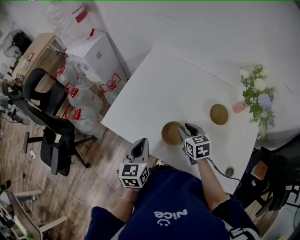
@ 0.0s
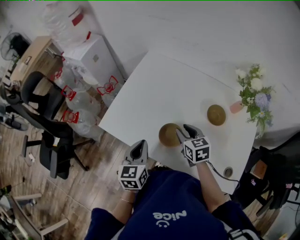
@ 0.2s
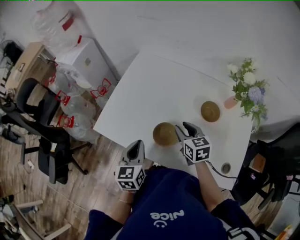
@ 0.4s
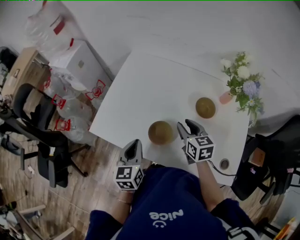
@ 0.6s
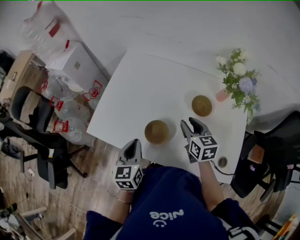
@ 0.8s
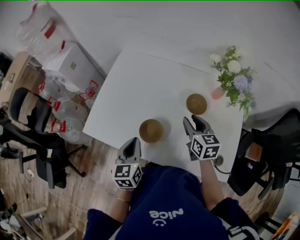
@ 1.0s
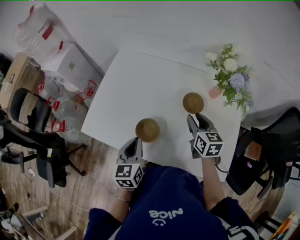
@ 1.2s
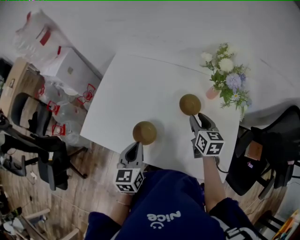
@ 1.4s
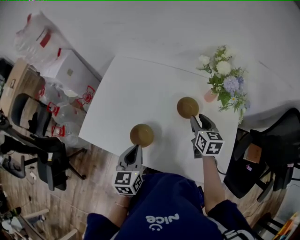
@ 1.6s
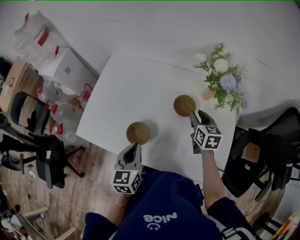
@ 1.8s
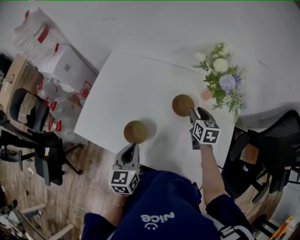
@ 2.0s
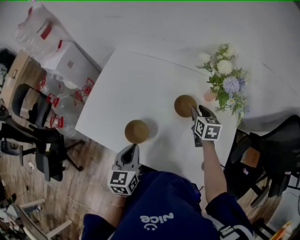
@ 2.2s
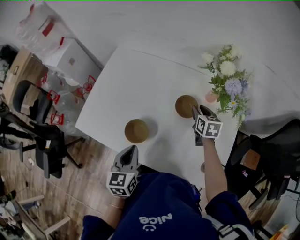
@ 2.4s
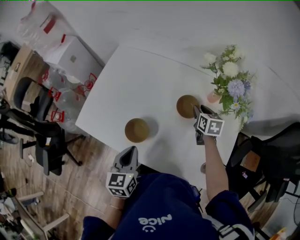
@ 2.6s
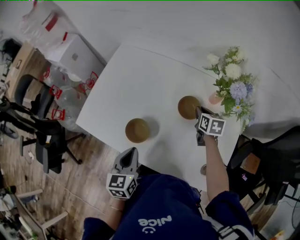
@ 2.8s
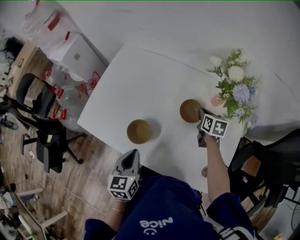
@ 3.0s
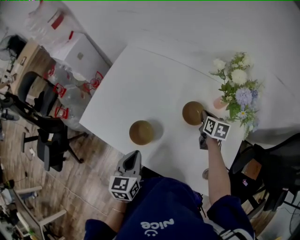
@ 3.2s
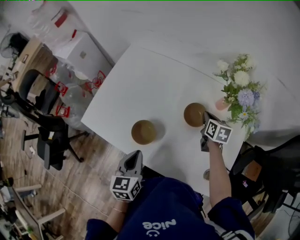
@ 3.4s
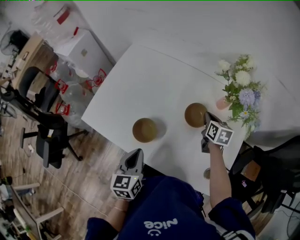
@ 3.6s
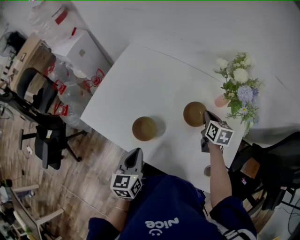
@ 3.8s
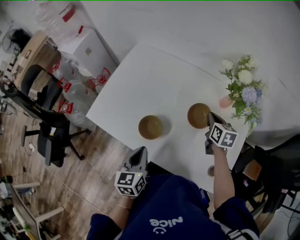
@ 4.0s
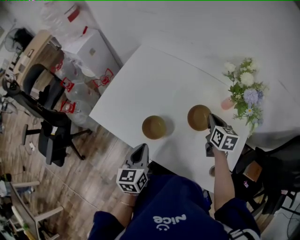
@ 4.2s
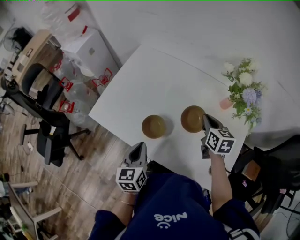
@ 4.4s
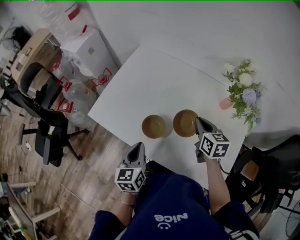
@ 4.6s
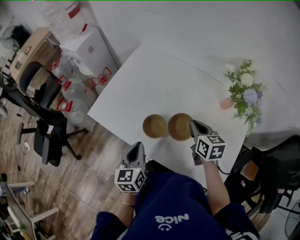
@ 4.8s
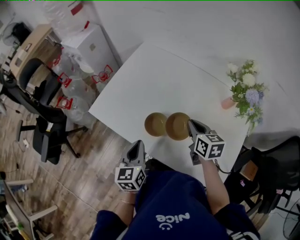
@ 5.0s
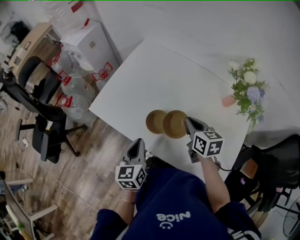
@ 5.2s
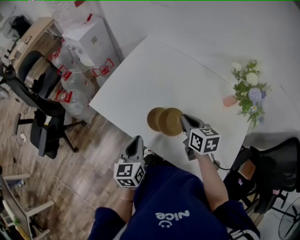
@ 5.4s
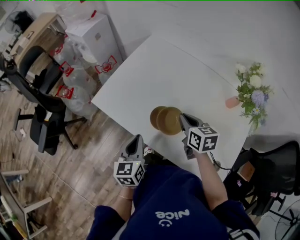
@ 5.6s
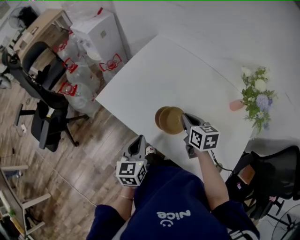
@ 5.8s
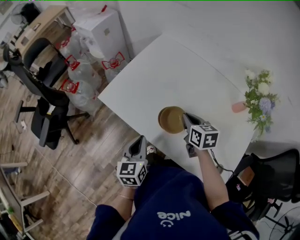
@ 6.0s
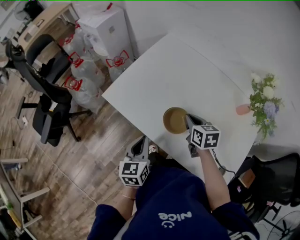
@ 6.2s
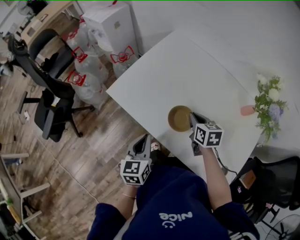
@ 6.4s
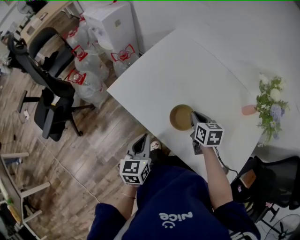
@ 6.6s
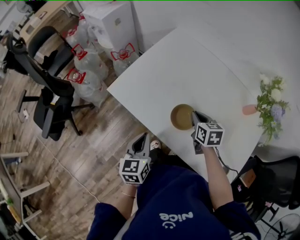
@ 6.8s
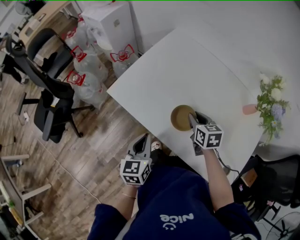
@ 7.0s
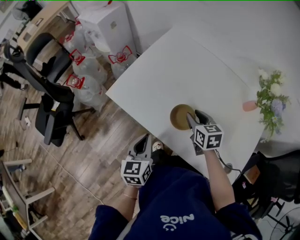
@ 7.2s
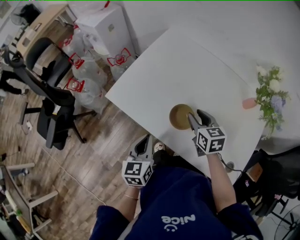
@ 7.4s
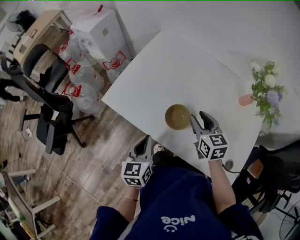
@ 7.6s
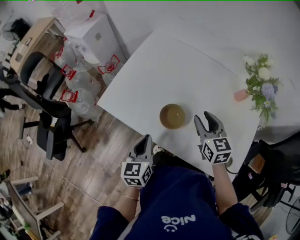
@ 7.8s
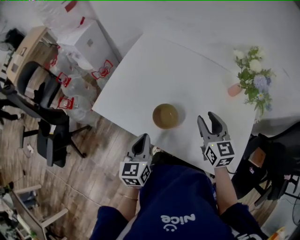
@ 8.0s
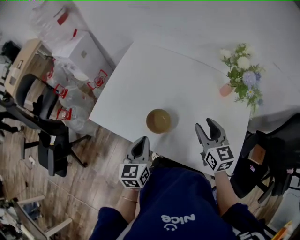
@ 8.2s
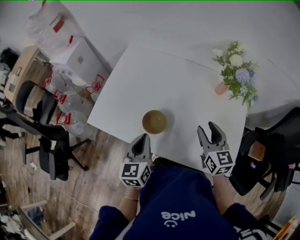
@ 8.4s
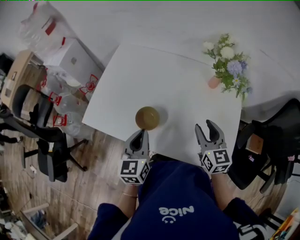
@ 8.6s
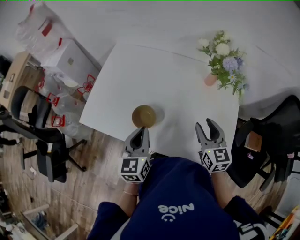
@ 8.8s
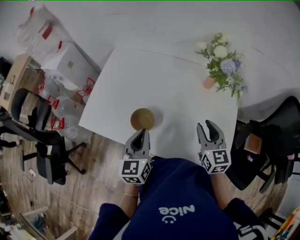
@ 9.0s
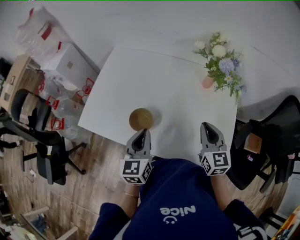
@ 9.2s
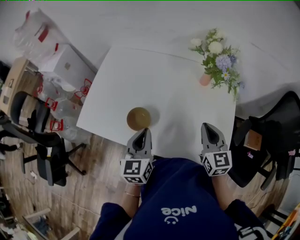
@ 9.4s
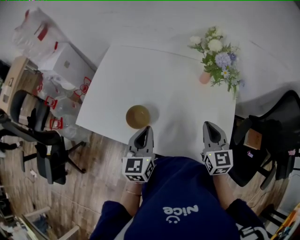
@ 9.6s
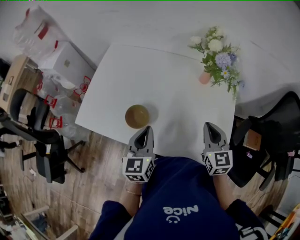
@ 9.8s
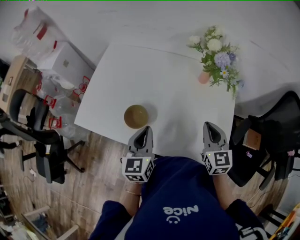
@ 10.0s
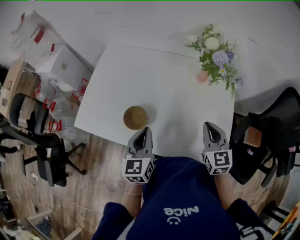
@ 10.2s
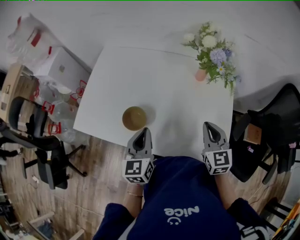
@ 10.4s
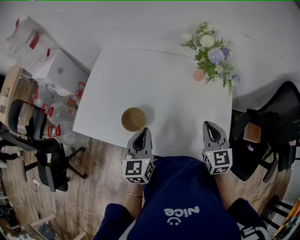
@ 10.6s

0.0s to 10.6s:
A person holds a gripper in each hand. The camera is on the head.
0.0s to 1.6s: The left gripper is displaced to the right by some 15 cm. Meanwhile the right gripper travels to the right by roughly 25 cm, and rotates about 30 degrees.
1.6s to 3.0s: The right gripper moves downward and forward, approximately 10 cm, and closes its fingers.
3.0s to 4.6s: The left gripper goes approximately 5 cm to the left. Meanwhile the right gripper travels to the left, upward and backward by roughly 20 cm.
4.6s to 6.0s: The left gripper shifts roughly 5 cm to the left; the right gripper is displaced to the left by some 15 cm.
6.0s to 7.6s: The right gripper opens up.
7.6s to 9.0s: The right gripper moves to the right and backward, about 20 cm, and rotates roughly 20 degrees. The left gripper moves to the right and upward, some 15 cm.
9.0s to 10.6s: The right gripper ends up about 5 cm from where it was, and closes up.

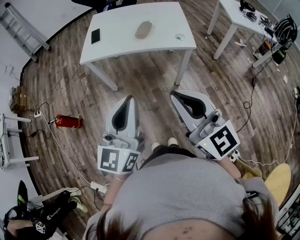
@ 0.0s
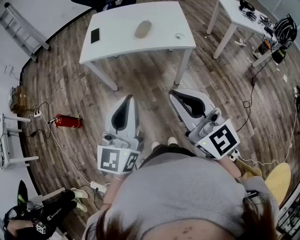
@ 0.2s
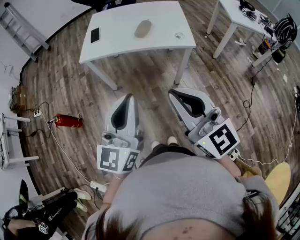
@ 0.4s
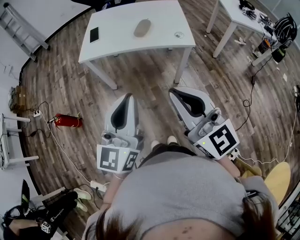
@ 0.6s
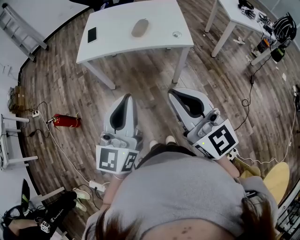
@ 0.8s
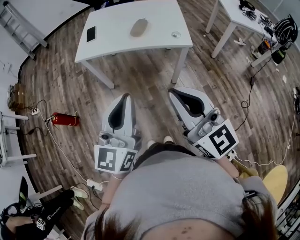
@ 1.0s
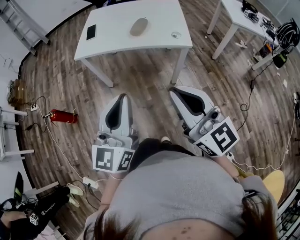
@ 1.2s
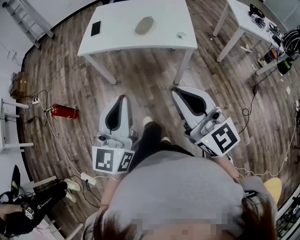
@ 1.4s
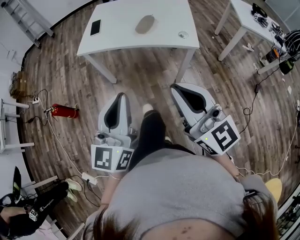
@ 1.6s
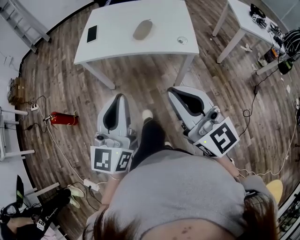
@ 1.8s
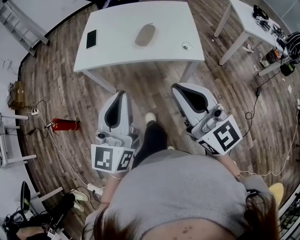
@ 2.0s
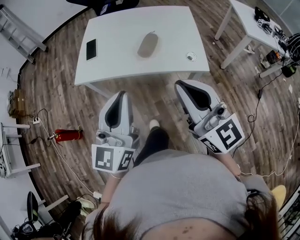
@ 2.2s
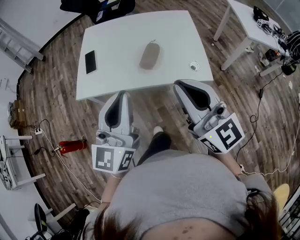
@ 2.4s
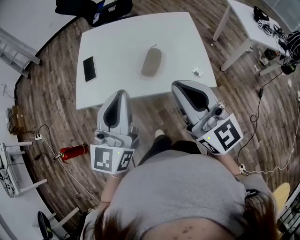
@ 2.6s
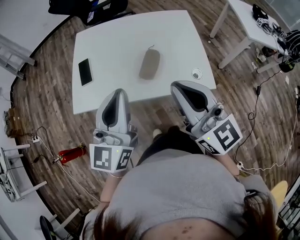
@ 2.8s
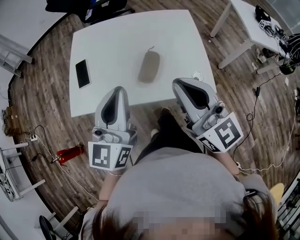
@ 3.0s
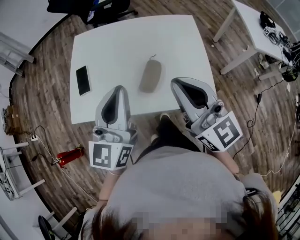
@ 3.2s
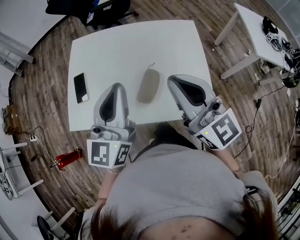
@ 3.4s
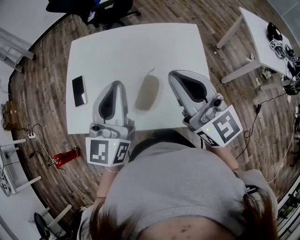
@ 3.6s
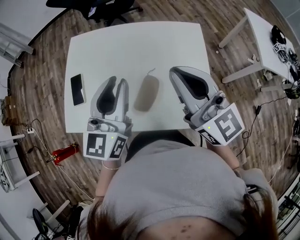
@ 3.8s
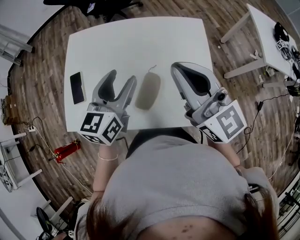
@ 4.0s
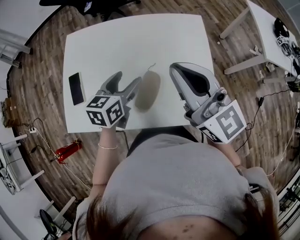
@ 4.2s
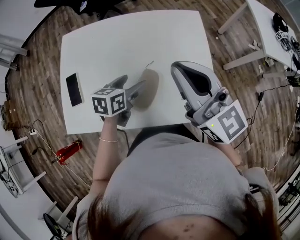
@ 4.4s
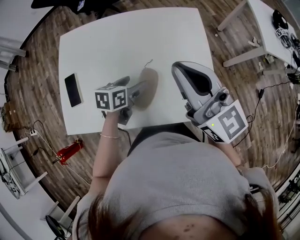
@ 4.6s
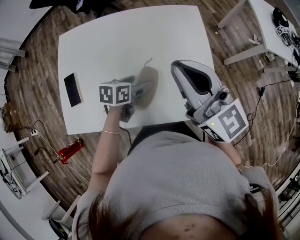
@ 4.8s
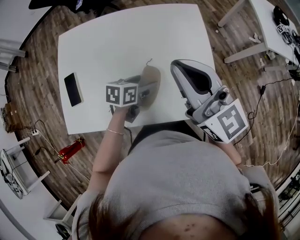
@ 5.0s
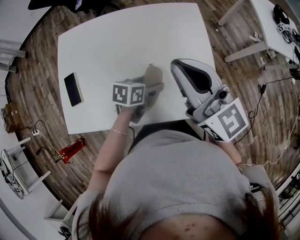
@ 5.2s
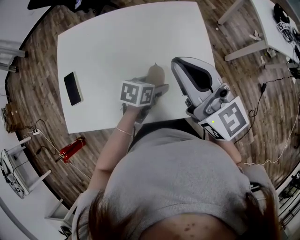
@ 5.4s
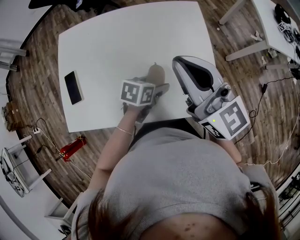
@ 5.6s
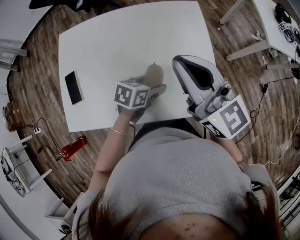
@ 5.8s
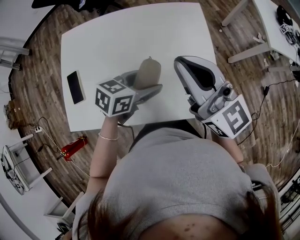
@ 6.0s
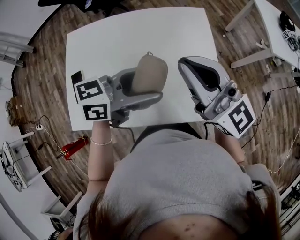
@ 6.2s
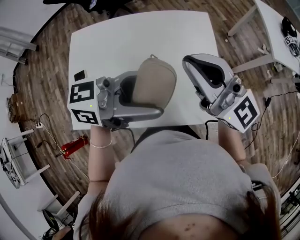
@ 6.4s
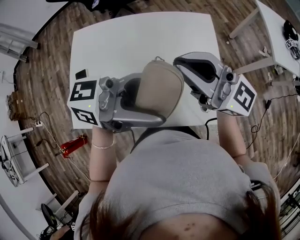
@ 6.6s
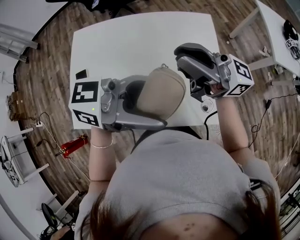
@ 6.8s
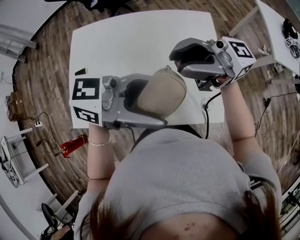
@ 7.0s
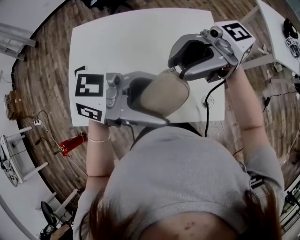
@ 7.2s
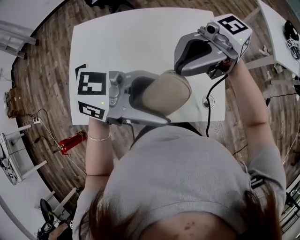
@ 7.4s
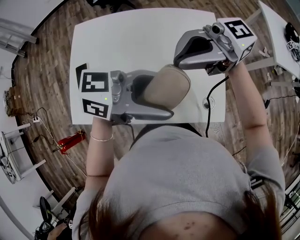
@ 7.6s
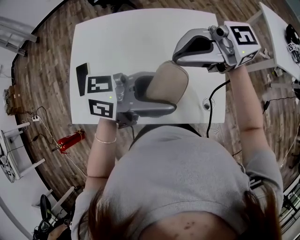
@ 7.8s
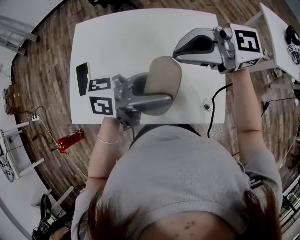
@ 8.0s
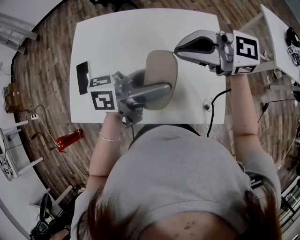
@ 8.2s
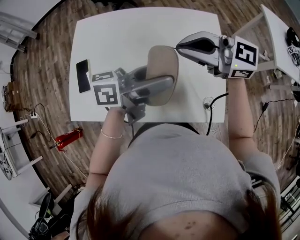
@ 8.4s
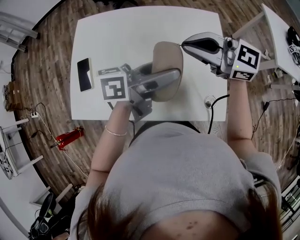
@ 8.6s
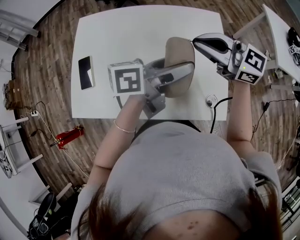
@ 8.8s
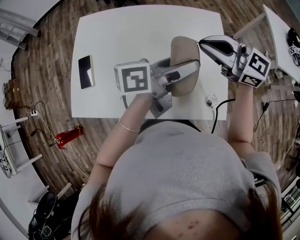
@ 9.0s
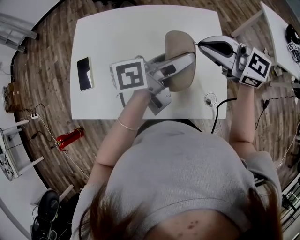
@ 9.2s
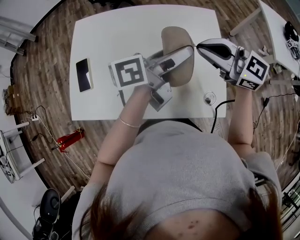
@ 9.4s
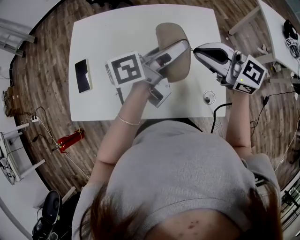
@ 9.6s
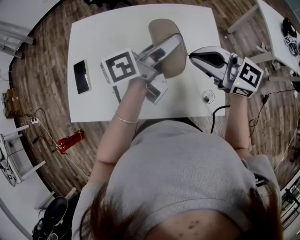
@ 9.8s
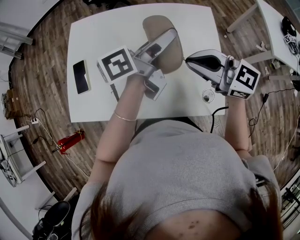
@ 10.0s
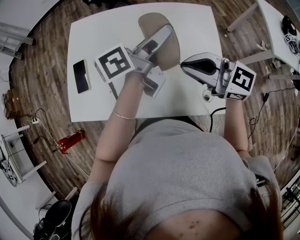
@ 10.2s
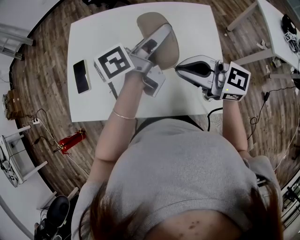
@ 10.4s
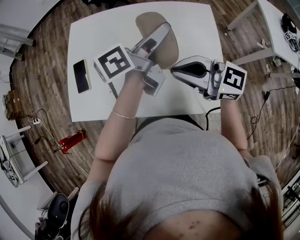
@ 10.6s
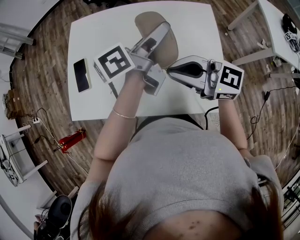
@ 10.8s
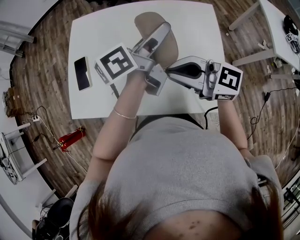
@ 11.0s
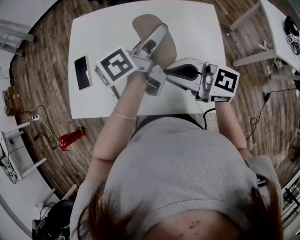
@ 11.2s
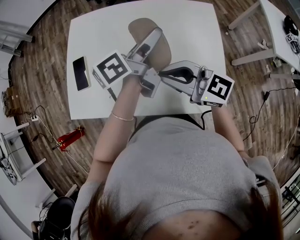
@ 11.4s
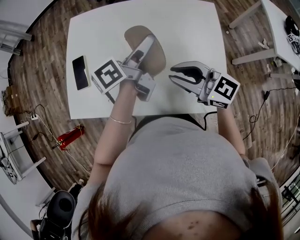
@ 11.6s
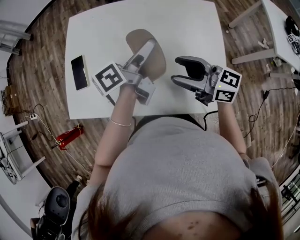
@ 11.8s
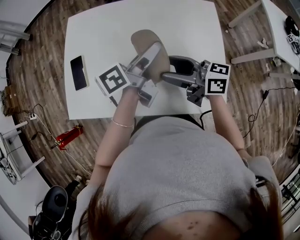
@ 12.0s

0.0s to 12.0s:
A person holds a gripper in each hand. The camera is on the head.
0.0s to 1.6s: The right gripper shifts by roughly 5 cm.
1.6s to 3.0s: Both grippers travel together forward, about 35 cm.
3.0s to 4.4s: The right gripper moves forward, about 15 cm. Meanwhile the left gripper moves downward and forward, roughly 30 cm, points its fingers approximately 40 degrees further downward, and opens its fingers.
4.4s to 6.0s: The left gripper heads to the right, covering roughly 10 cm, and swivels about 20 degrees.
6.0s to 7.6s: The right gripper moves some 5 cm, and changes its angle by some 80 degrees. Meanwhile the left gripper is displaced upward by some 15 cm, and tilts its fingers approximately 30 degrees upward.
7.6s to 9.0s: The right gripper moves downward, roughly 10 cm, and turns by some 50 degrees. Meanwhile the left gripper shifts by about 10 cm, and swivels some 40 degrees.
9.0s to 10.4s: The right gripper ends up about 10 cm from where it was. The left gripper ends up roughly 10 cm from where it was.
10.4s to 12.0s: The two grippers go some 5 cm downward. The right gripper swivels some 30 degrees, and opens up.

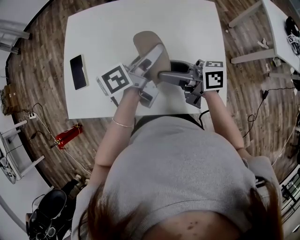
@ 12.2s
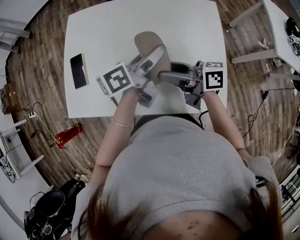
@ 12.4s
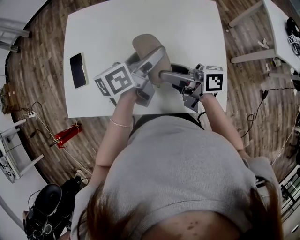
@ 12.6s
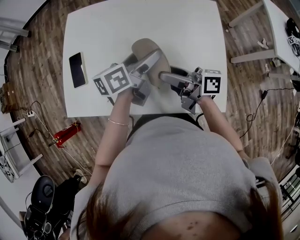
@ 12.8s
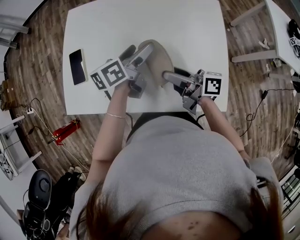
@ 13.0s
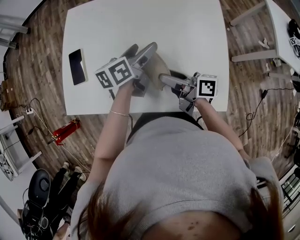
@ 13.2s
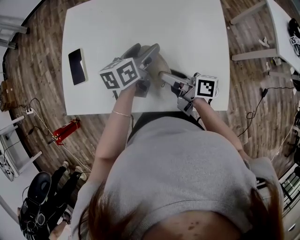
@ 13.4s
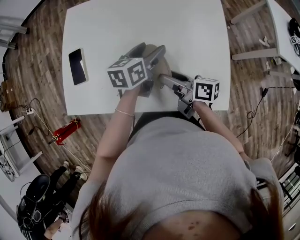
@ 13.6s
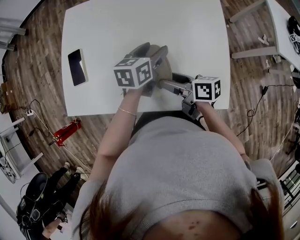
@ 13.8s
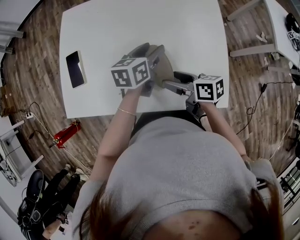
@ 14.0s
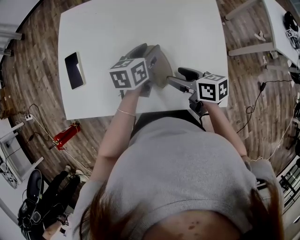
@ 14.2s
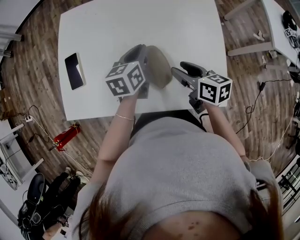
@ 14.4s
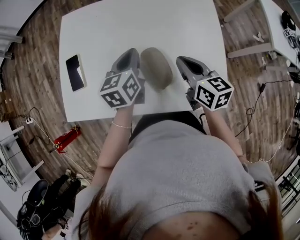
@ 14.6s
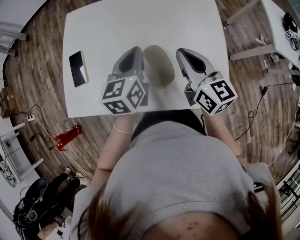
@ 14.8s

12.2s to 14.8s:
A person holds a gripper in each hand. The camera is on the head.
12.2s to 13.4s: Both grippers travel together downward, approximately 10 cm. The right gripper rotates roughly 20 degrees. The left gripper turns by some 30 degrees.
13.4s to 14.8s: The left gripper goes approximately 5 cm upward, swivels some 20 degrees, and closes its fingers. The right gripper goes approximately 10 cm upward and to the right, twists approximately 50 degrees counterclockwise, seen from behind, and closes up.
